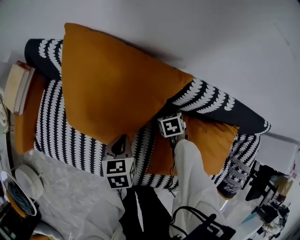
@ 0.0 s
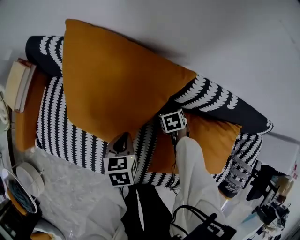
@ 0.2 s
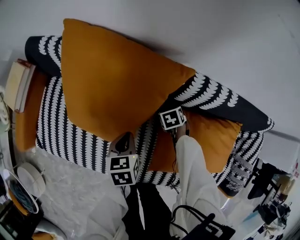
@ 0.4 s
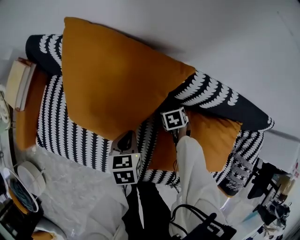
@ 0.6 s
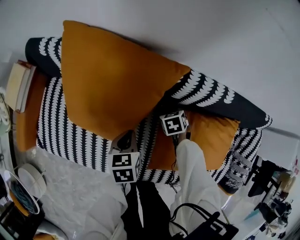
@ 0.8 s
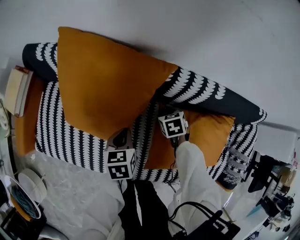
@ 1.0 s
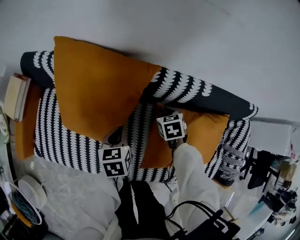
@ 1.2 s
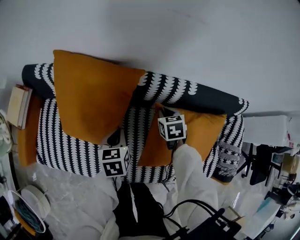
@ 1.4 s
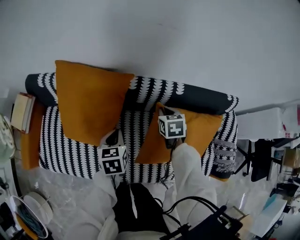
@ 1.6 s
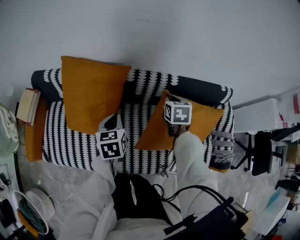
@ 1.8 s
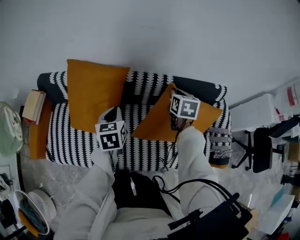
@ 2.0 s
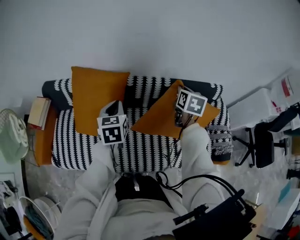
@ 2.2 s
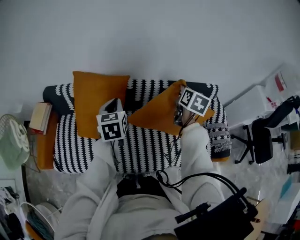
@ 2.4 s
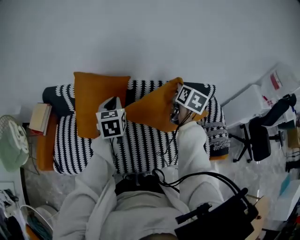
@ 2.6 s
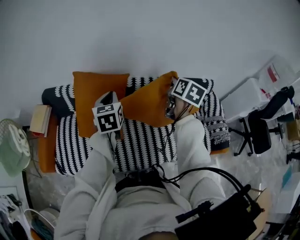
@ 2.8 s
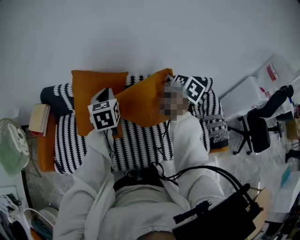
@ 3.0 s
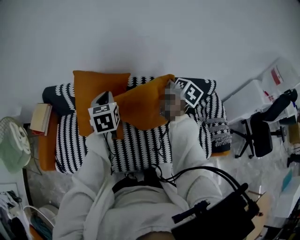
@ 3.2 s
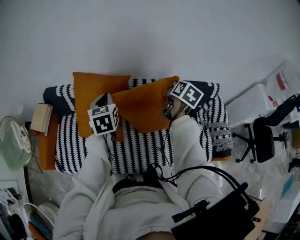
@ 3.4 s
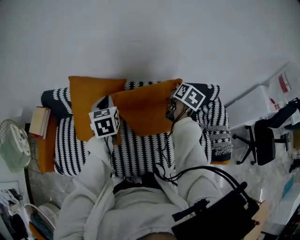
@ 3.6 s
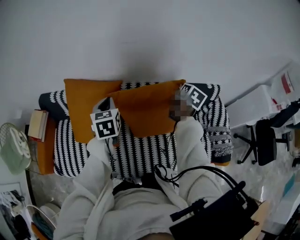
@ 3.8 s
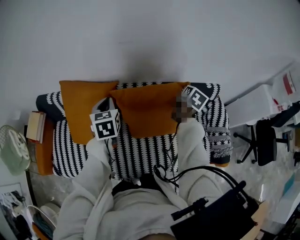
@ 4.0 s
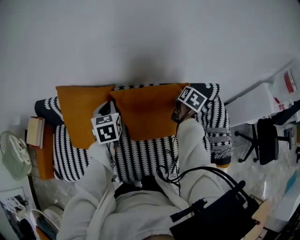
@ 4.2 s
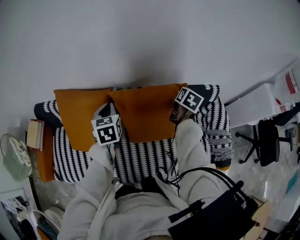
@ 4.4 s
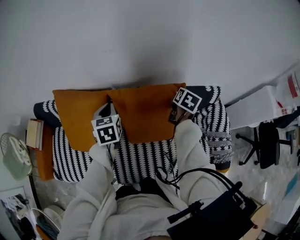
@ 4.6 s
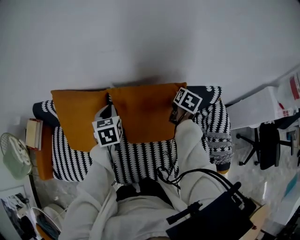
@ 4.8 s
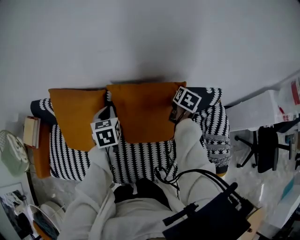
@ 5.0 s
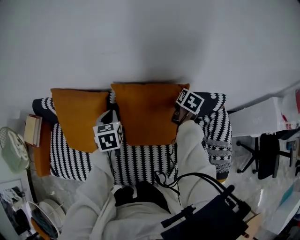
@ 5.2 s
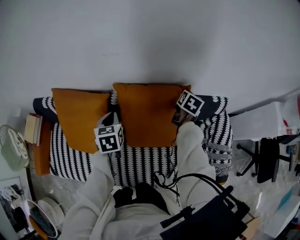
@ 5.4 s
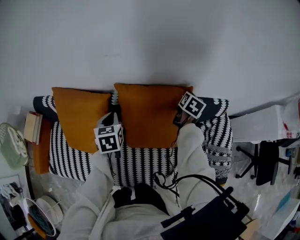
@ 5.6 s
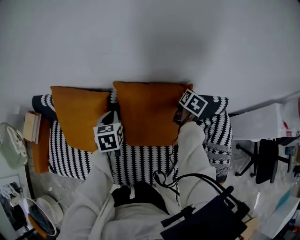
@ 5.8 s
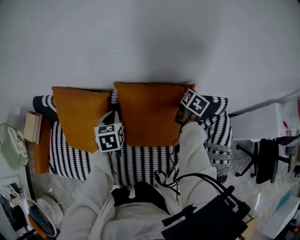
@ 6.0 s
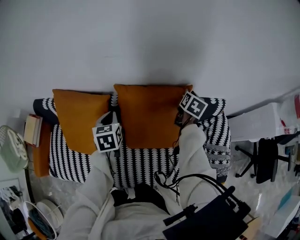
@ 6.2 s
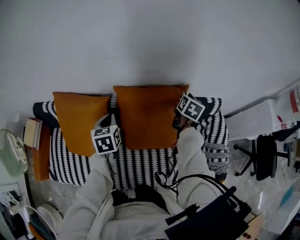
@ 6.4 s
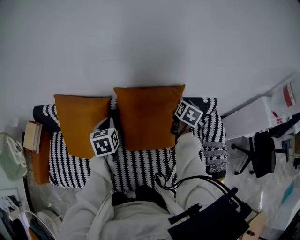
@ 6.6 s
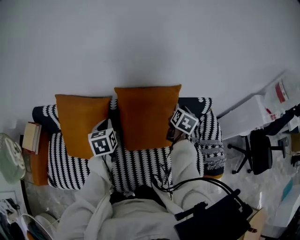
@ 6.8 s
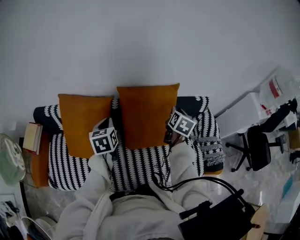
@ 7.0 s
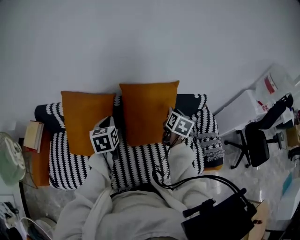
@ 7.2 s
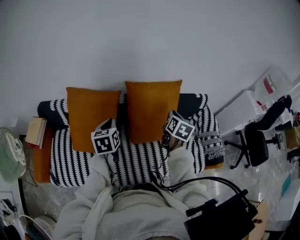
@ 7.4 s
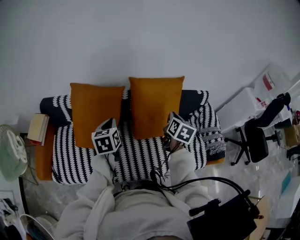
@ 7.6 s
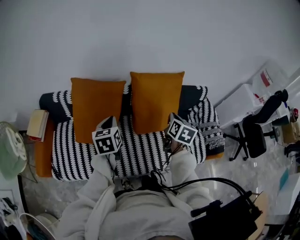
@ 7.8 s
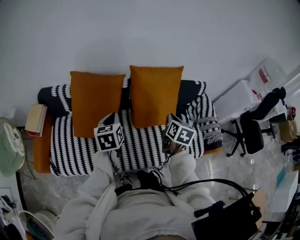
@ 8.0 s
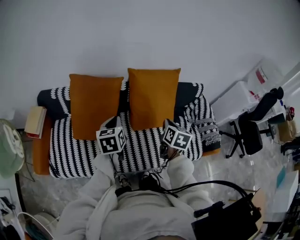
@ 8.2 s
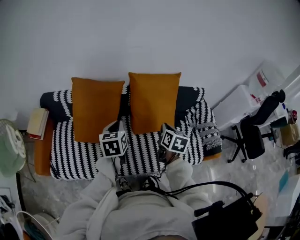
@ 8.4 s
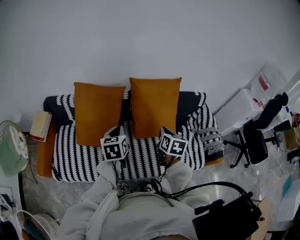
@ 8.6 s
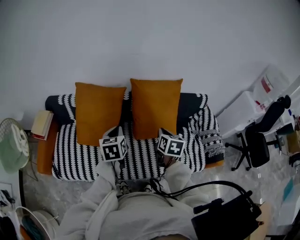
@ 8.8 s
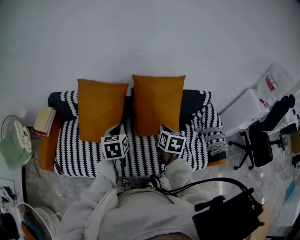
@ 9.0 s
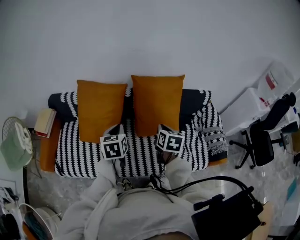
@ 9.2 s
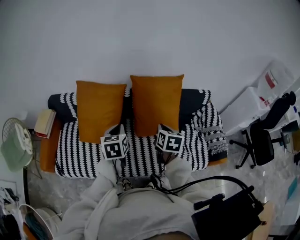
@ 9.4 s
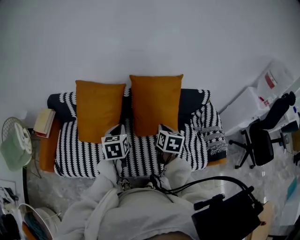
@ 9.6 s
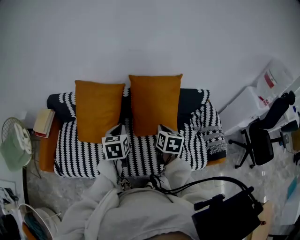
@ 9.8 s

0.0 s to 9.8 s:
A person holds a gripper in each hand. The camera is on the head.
0.0 to 1.4 s: The right gripper goes approximately 15 cm upward, rotates approximately 20 degrees, and closes; the left gripper is displaced upward by about 10 cm.
1.4 to 2.8 s: The grippers both shift upward by some 30 cm. The right gripper angles its fingers upward, by approximately 30 degrees; the left gripper turns by roughly 30 degrees.
2.8 to 4.2 s: The left gripper goes approximately 15 cm forward, to the right and downward. The right gripper is displaced to the right, forward and downward by about 25 cm.
4.2 to 5.6 s: The right gripper heads forward and downward, covering approximately 10 cm, while the left gripper heads downward, covering some 5 cm.
5.6 to 7.0 s: The right gripper travels backward and upward by about 20 cm. The left gripper goes about 10 cm backward and upward.
7.0 to 8.4 s: The right gripper travels backward and to the left by approximately 25 cm; the left gripper heads backward, covering roughly 15 cm.
8.4 to 9.8 s: There are only small adjustments of the grippers.

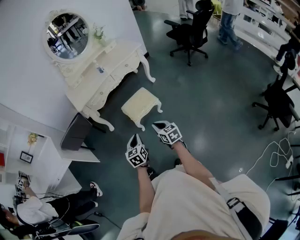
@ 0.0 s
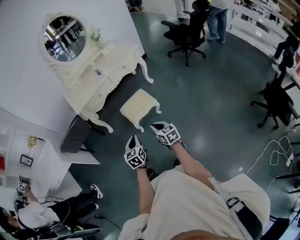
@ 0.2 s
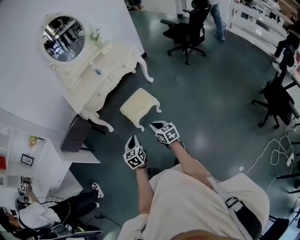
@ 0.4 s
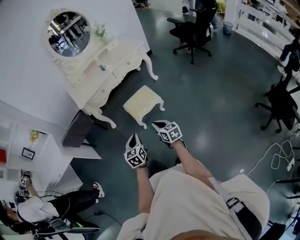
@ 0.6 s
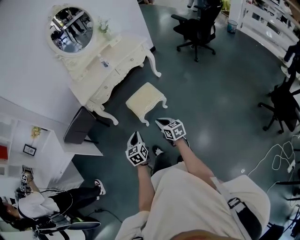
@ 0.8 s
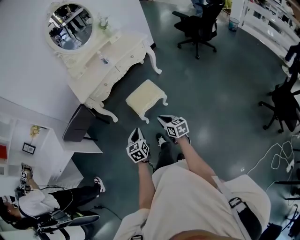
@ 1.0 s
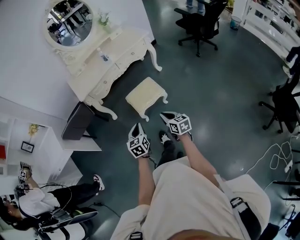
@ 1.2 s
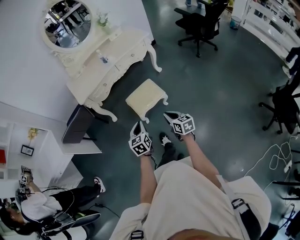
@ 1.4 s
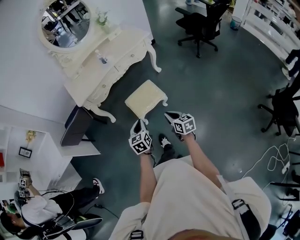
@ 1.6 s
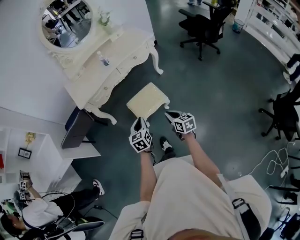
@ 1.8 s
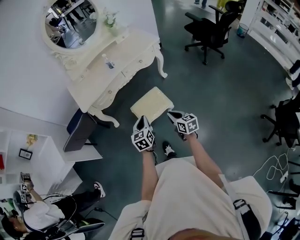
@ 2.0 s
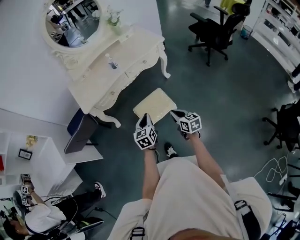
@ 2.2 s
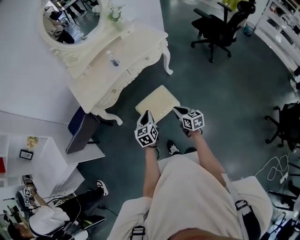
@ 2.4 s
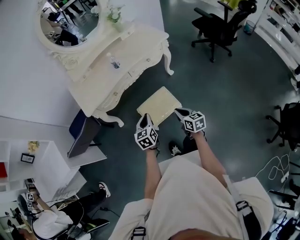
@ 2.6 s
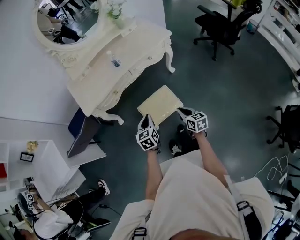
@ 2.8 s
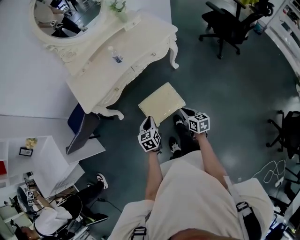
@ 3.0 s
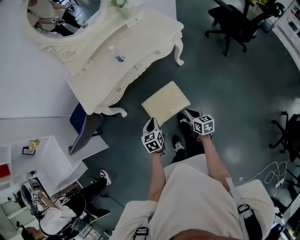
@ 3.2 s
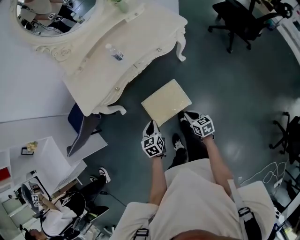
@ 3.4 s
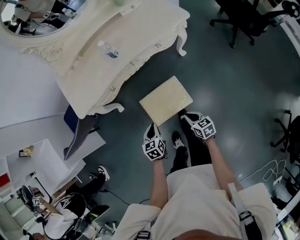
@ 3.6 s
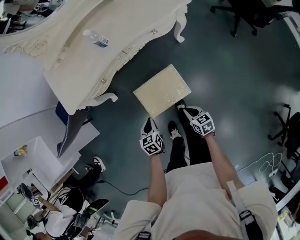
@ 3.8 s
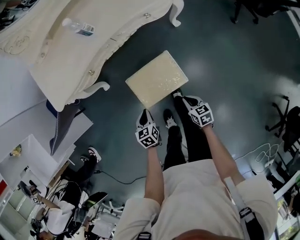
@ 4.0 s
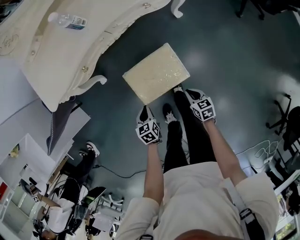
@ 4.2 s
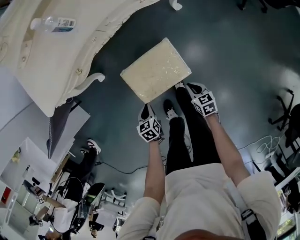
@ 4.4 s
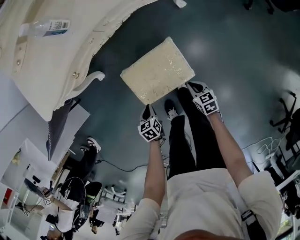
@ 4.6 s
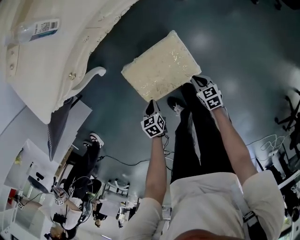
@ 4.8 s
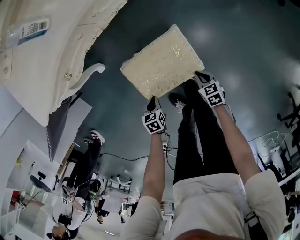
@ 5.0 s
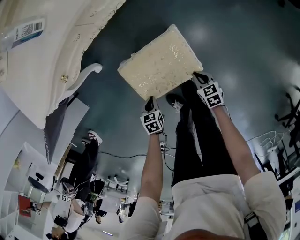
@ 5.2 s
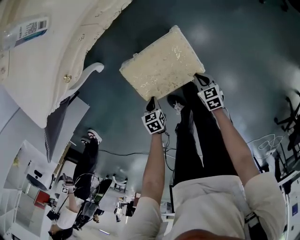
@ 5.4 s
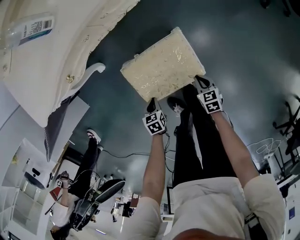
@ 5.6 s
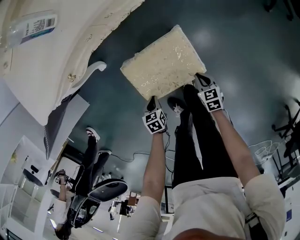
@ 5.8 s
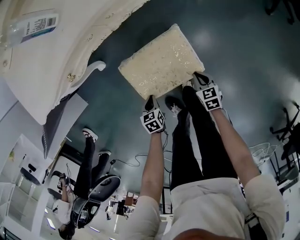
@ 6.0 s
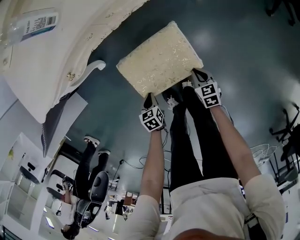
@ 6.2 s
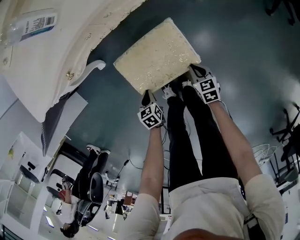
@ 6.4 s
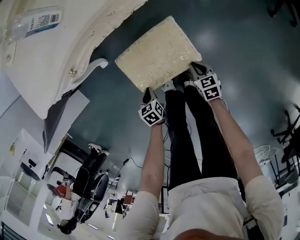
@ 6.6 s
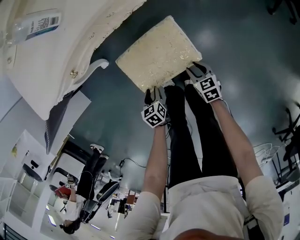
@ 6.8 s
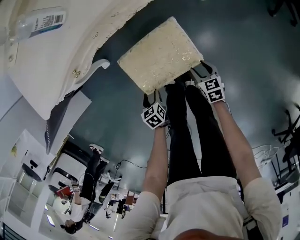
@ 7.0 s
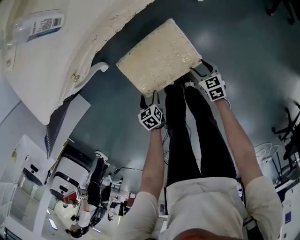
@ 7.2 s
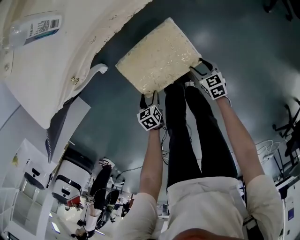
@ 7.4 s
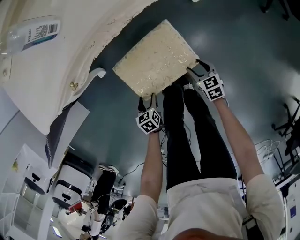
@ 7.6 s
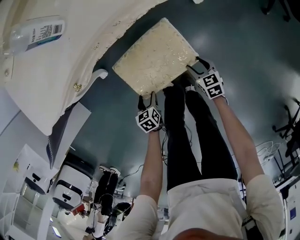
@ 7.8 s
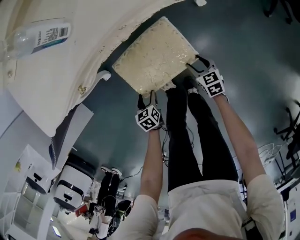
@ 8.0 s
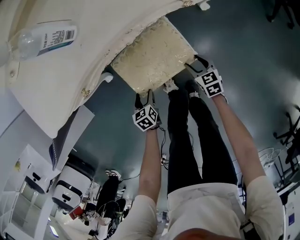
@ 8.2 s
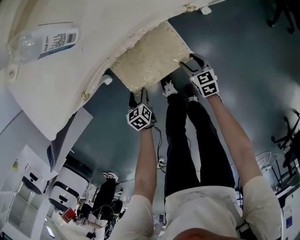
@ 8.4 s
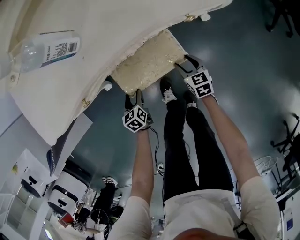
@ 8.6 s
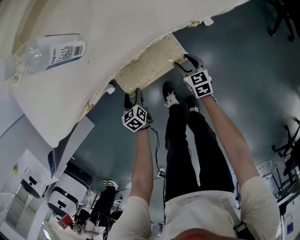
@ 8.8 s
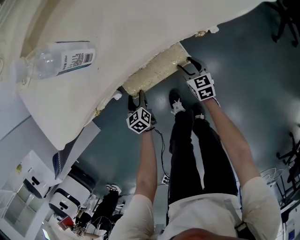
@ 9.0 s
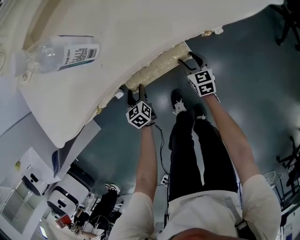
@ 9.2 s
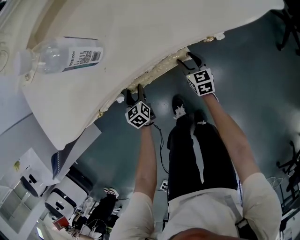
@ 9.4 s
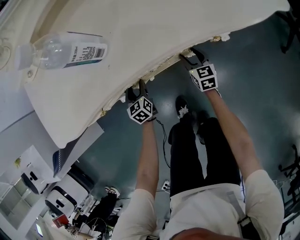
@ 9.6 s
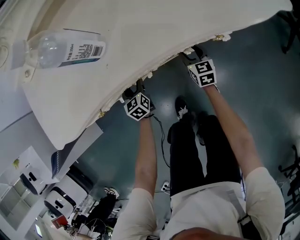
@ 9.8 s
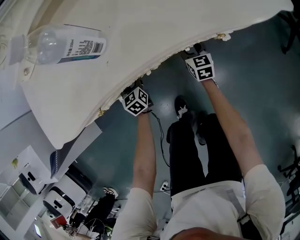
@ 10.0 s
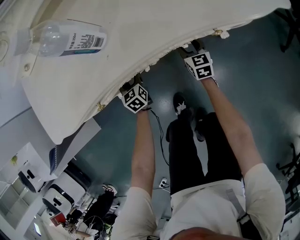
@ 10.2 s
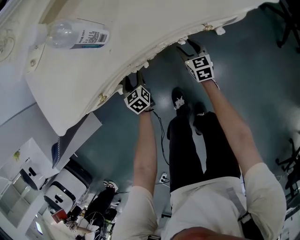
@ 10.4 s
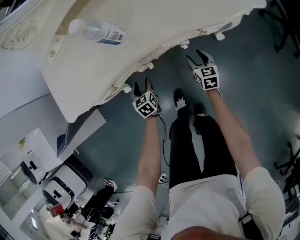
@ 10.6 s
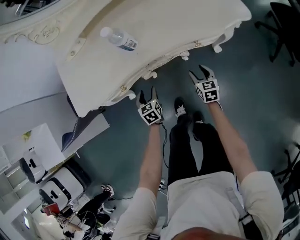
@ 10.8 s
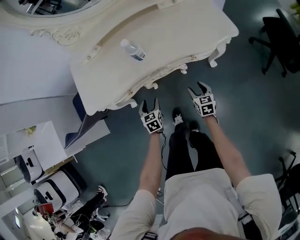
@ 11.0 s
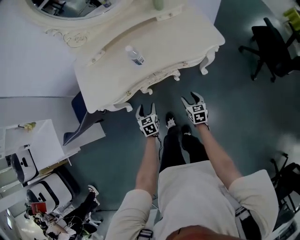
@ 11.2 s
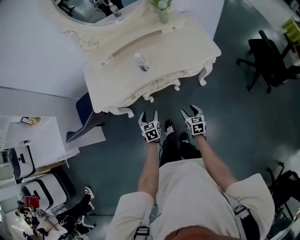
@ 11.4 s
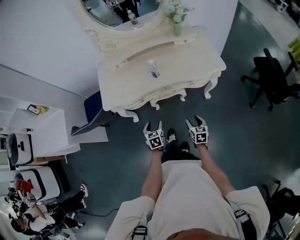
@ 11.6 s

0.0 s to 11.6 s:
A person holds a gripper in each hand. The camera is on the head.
0.0 to 1.4 s: The left gripper moves forward, approximately 10 cm, while the right gripper heads forward and to the right, covering roughly 10 cm.
1.4 to 2.8 s: Both grippers travel together forward, some 25 cm.
2.8 to 4.4 s: The two grippers go approximately 35 cm downward. The left gripper swivels about 30 degrees, while the right gripper rotates approximately 30 degrees.
4.4 to 5.8 s: The left gripper shifts some 15 cm downward, while the right gripper goes about 15 cm downward and forward.
5.8 to 7.2 s: The left gripper opens up. The right gripper is displaced forward by roughly 5 cm, and opens its fingers.
7.2 to 8.8 s: Both grippers move forward, some 20 cm.
8.8 to 10.2 s: The two grippers go roughly 15 cm forward.
10.2 to 11.6 s: Both grippers travel together upward and backward, some 50 cm.

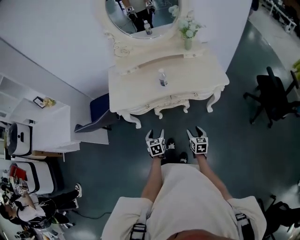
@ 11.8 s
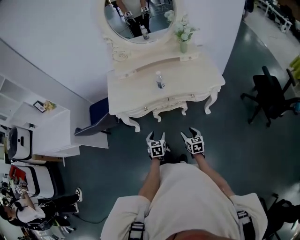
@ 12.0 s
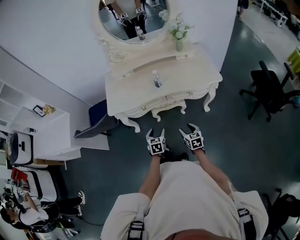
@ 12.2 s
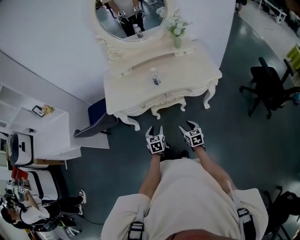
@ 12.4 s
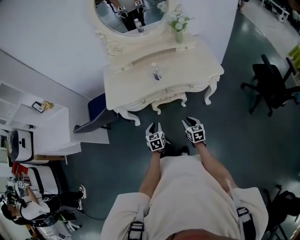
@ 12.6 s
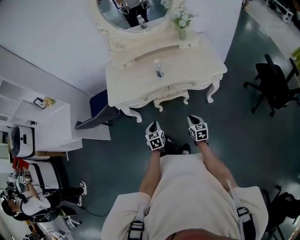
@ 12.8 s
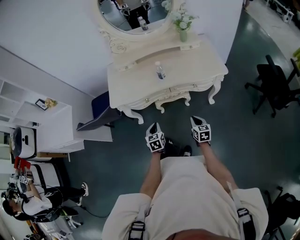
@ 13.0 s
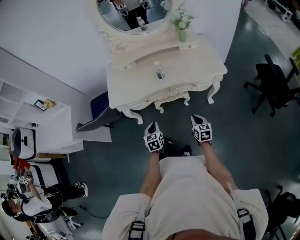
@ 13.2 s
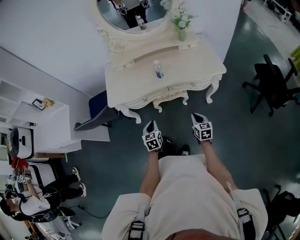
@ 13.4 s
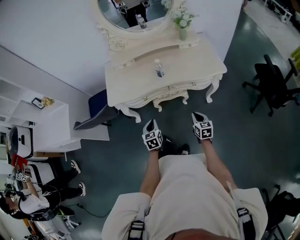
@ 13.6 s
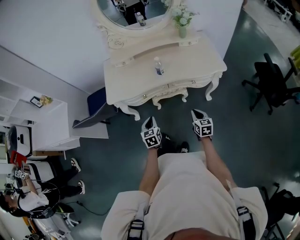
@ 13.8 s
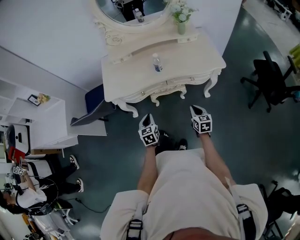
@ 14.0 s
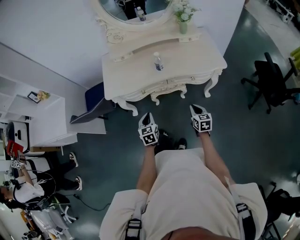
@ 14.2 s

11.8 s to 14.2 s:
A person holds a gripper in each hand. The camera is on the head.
11.8 to 13.0 s: The right gripper closes up; the left gripper closes up.
13.0 to 14.2 s: The grippers move only a little.
